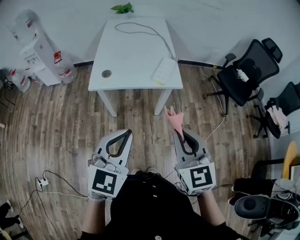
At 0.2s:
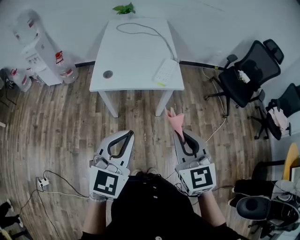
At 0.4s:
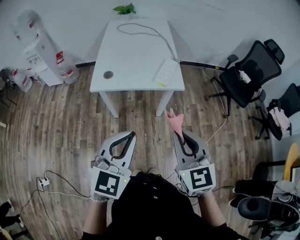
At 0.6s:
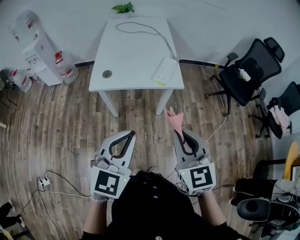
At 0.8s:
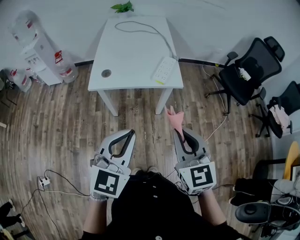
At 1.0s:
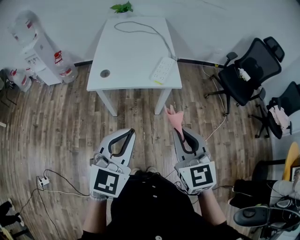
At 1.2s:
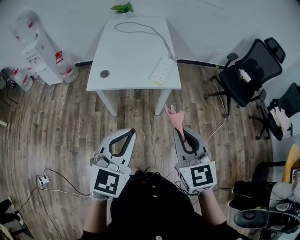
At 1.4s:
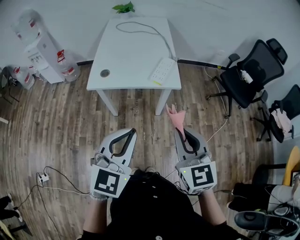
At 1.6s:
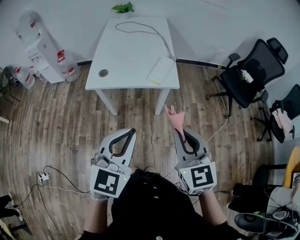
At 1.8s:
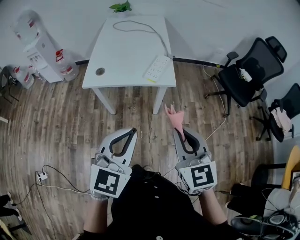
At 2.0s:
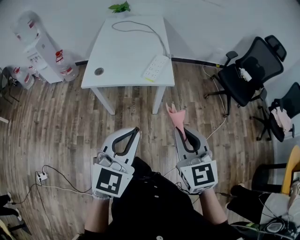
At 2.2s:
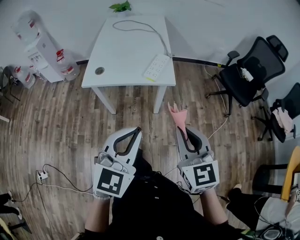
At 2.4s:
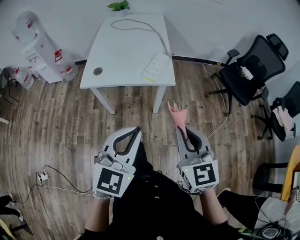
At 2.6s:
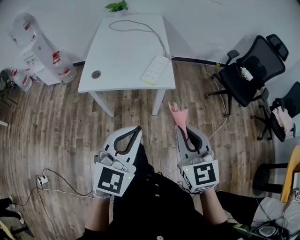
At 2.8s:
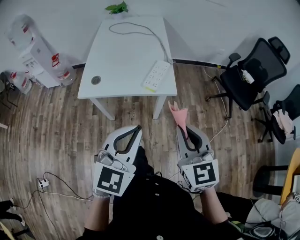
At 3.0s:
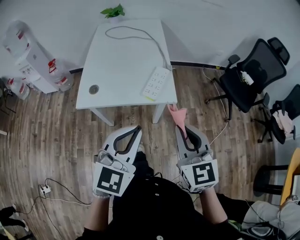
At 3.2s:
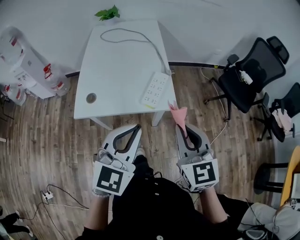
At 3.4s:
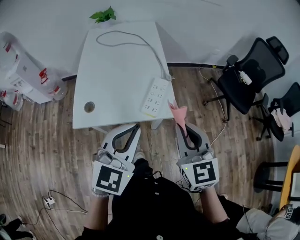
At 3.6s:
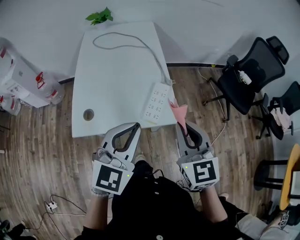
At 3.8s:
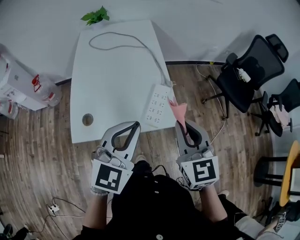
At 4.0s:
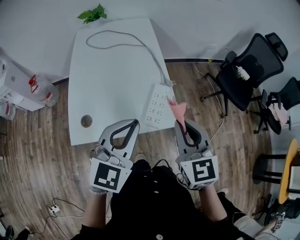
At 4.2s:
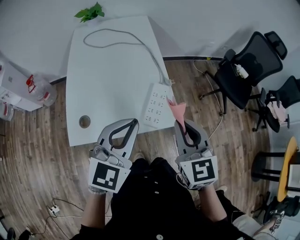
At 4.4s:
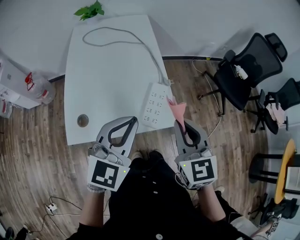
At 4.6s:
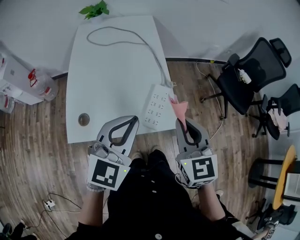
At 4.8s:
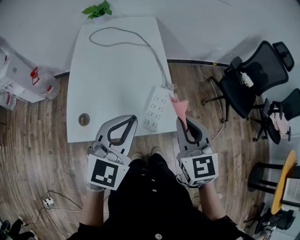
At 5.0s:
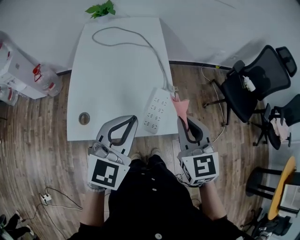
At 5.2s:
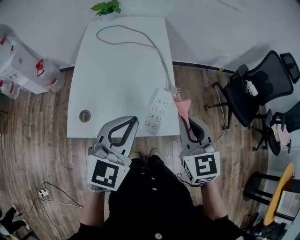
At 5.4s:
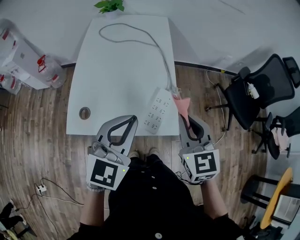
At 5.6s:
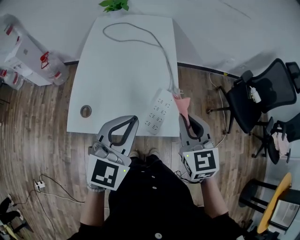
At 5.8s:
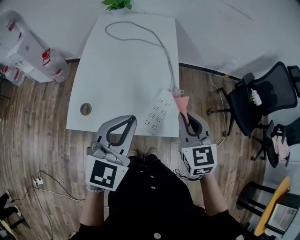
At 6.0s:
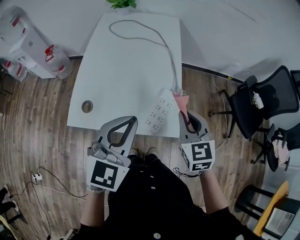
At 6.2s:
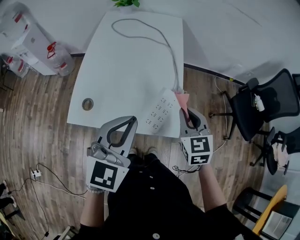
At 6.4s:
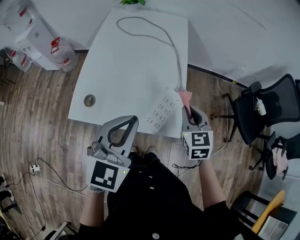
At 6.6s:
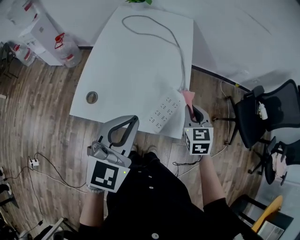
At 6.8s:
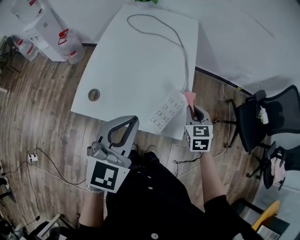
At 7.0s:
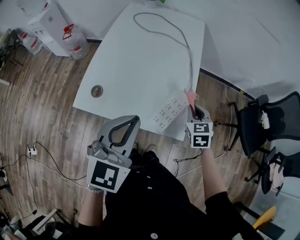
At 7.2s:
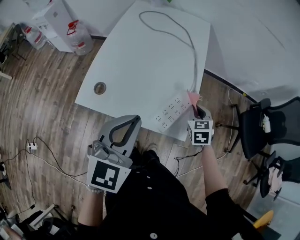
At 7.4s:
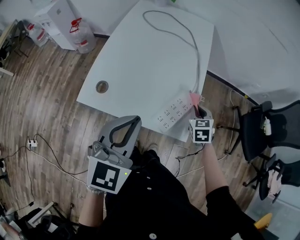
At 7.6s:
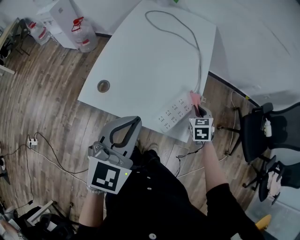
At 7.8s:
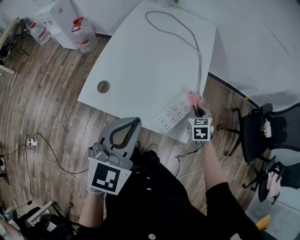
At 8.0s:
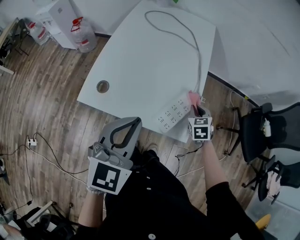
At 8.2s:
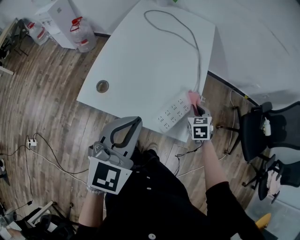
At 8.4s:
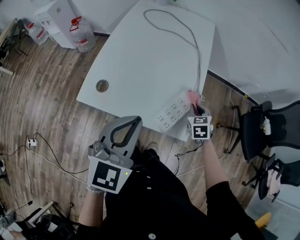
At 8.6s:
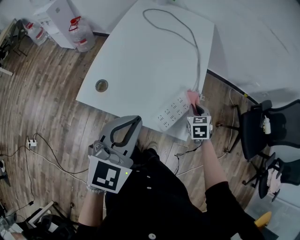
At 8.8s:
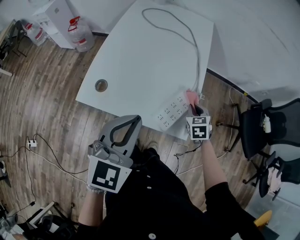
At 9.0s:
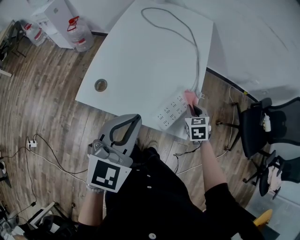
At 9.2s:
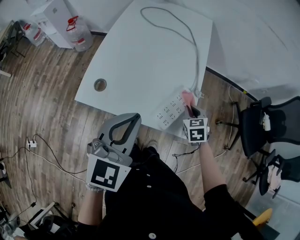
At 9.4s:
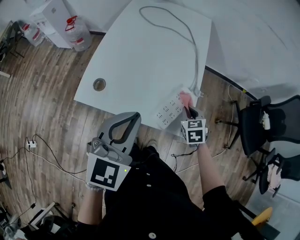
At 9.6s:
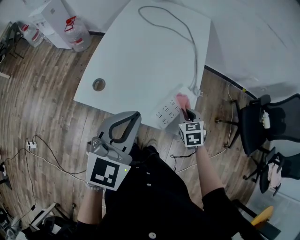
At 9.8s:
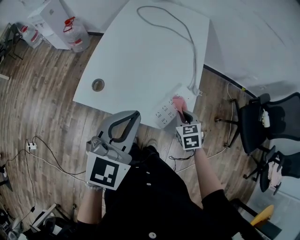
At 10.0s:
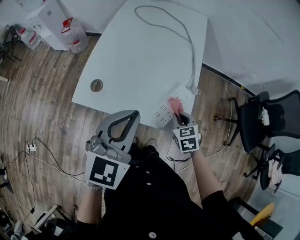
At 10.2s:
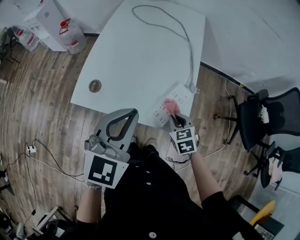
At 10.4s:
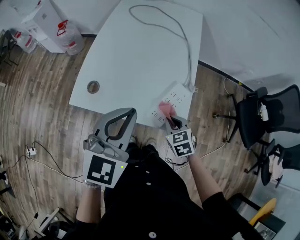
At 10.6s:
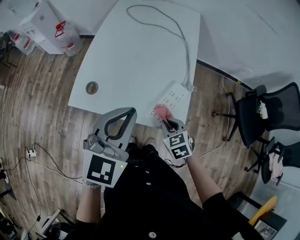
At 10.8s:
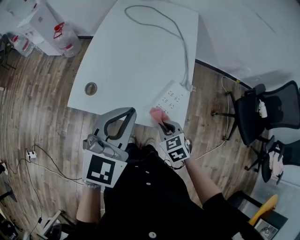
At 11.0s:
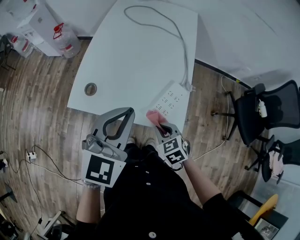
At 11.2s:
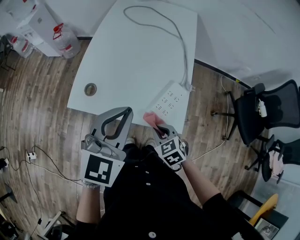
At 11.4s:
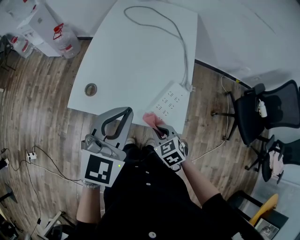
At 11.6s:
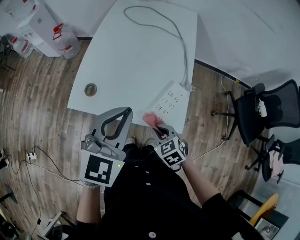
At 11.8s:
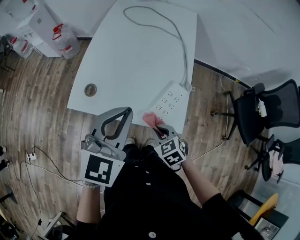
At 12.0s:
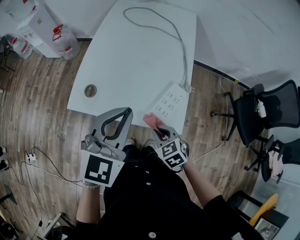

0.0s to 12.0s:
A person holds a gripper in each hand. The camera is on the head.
0.0s to 1.6s: Both grippers travel together to the right, about 5 cm.
1.6s to 3.0s: Both grippers travel together forward, roughly 15 cm.
3.0s to 4.4s: Both grippers travel together forward, about 20 cm.
4.4s to 6.0s: The right gripper travels forward and downward by some 10 cm.
6.0s to 7.6s: The right gripper goes about 20 cm downward and forward, and changes its angle by some 20 degrees.
7.6s to 9.0s: The grippers move only a little.
9.0s to 10.4s: The right gripper is displaced backward and to the left by approximately 10 cm.
10.4s to 12.0s: The right gripper heads to the left, covering roughly 5 cm.

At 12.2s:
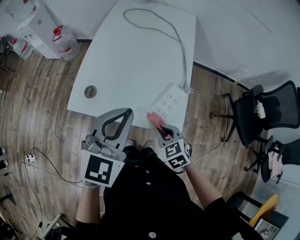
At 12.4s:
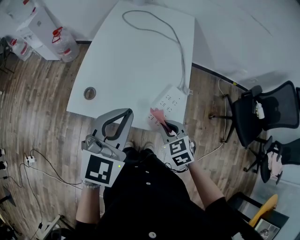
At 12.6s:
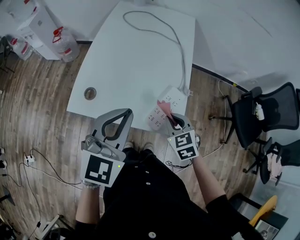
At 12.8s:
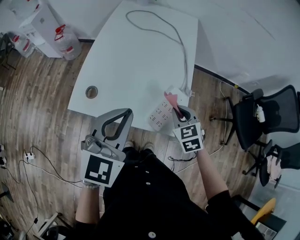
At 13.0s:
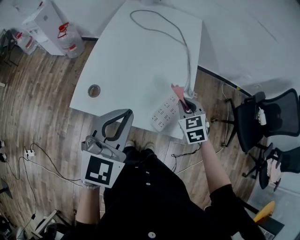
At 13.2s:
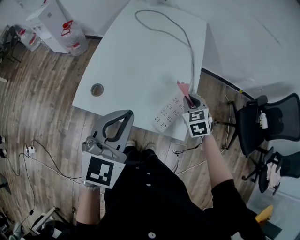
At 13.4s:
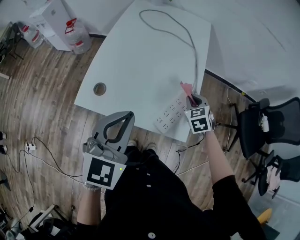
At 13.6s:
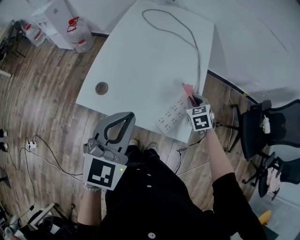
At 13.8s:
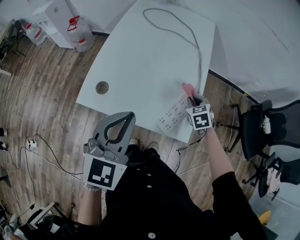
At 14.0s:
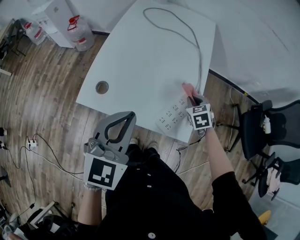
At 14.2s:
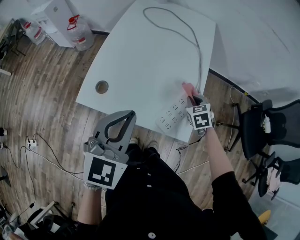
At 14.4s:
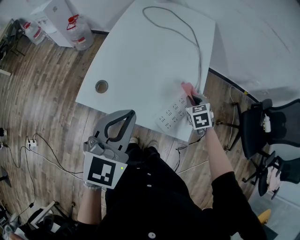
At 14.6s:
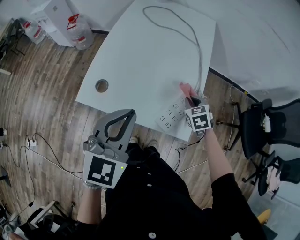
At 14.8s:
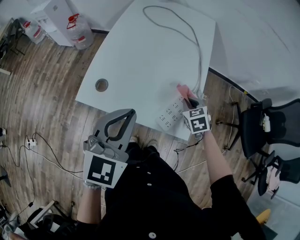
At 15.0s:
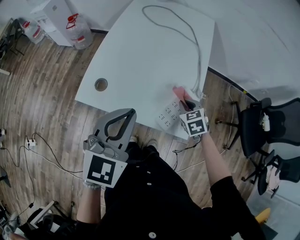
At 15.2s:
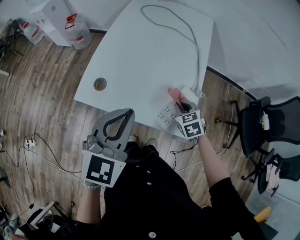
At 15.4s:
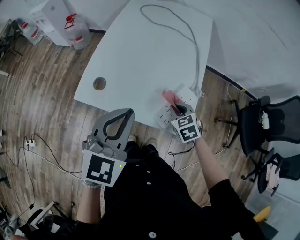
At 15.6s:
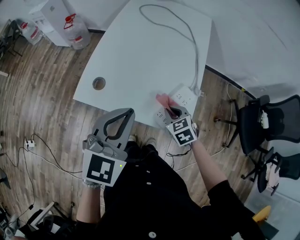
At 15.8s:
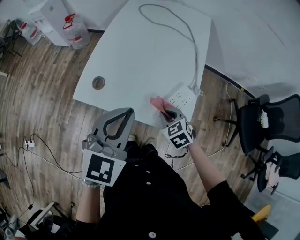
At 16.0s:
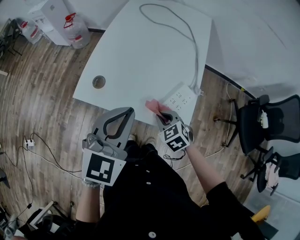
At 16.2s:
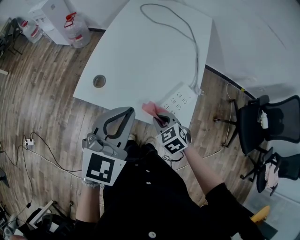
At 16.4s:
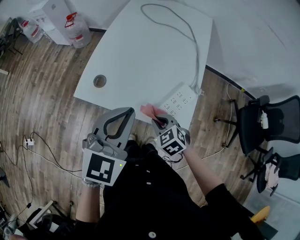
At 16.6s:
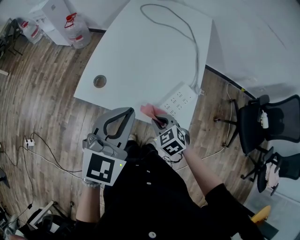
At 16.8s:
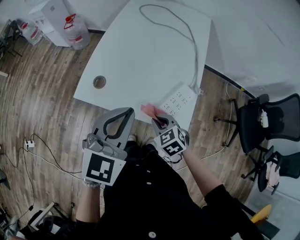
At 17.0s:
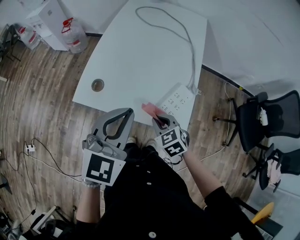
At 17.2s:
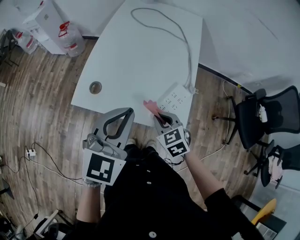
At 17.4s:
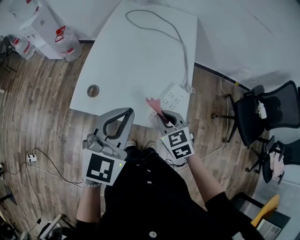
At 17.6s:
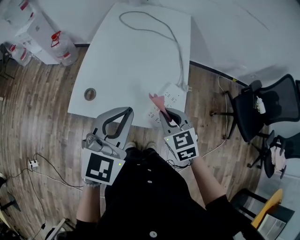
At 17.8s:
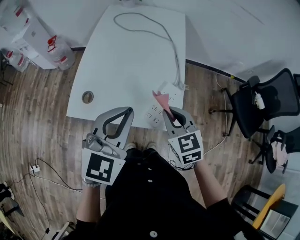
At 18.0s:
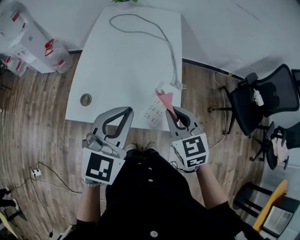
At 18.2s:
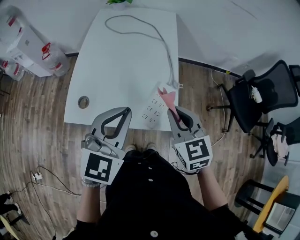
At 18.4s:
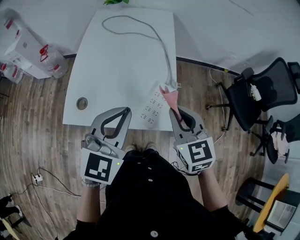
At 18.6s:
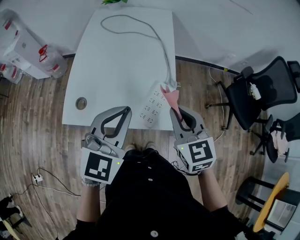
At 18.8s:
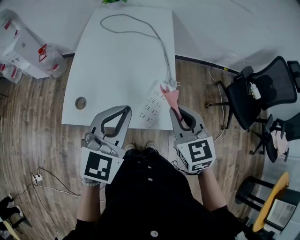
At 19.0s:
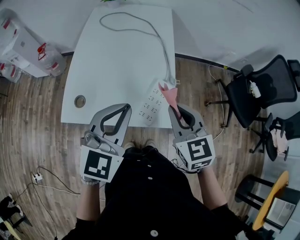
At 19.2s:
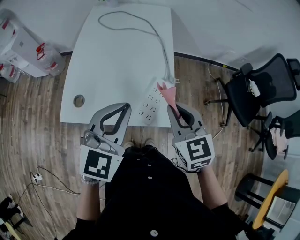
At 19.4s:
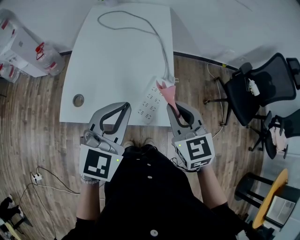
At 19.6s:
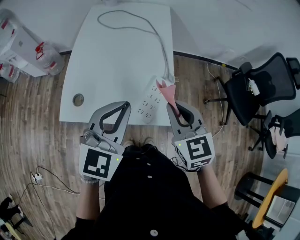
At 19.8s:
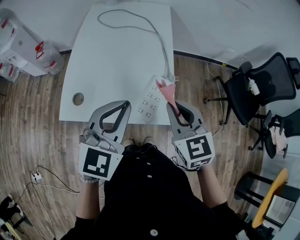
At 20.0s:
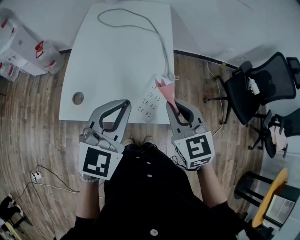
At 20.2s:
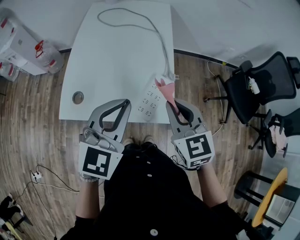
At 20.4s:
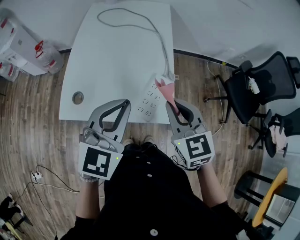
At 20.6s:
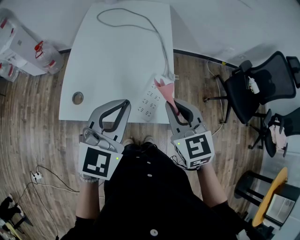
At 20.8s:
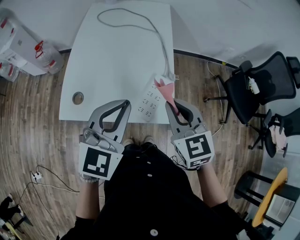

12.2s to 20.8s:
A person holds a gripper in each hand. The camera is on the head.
12.2s to 13.6s: The right gripper moves forward and to the right, roughly 20 cm.
13.6s to 15.0s: The right gripper shifts by roughly 5 cm.
15.0s to 16.6s: The right gripper goes approximately 15 cm to the left and backward.
16.6s to 18.0s: The left gripper is displaced to the right by approximately 5 cm, while the right gripper goes some 20 cm upward and to the right, and turns by approximately 40 degrees.
18.0s to 19.4s: There are only small adjustments of the grippers.
19.4s to 20.8s: Neither gripper changes place.

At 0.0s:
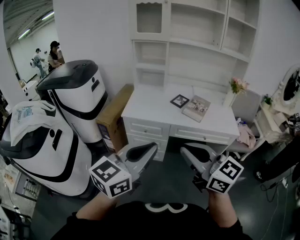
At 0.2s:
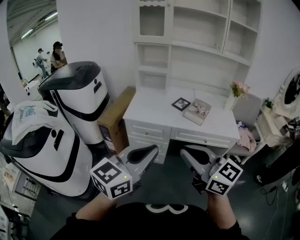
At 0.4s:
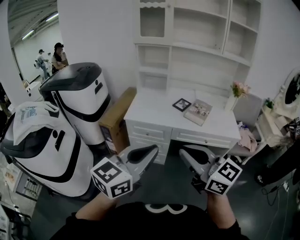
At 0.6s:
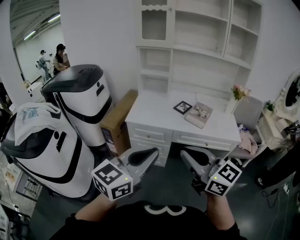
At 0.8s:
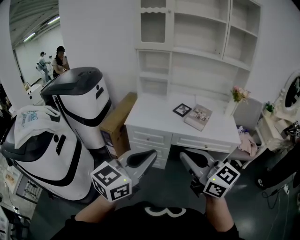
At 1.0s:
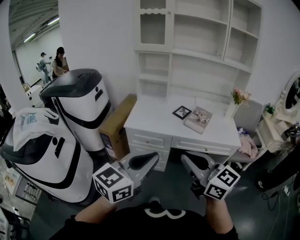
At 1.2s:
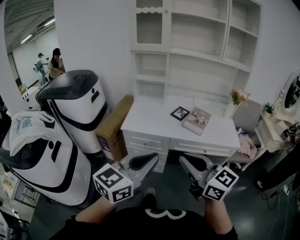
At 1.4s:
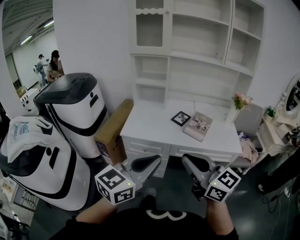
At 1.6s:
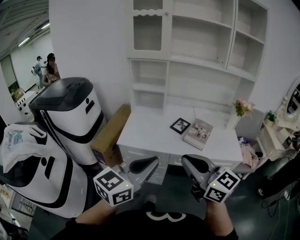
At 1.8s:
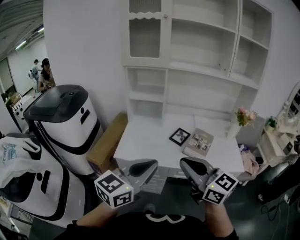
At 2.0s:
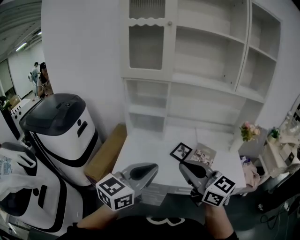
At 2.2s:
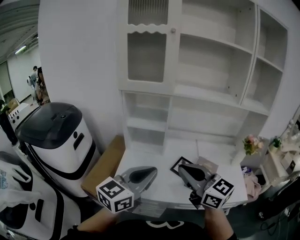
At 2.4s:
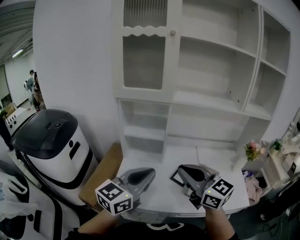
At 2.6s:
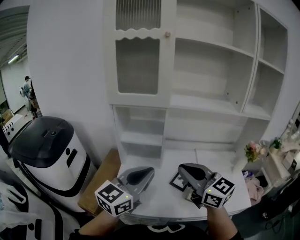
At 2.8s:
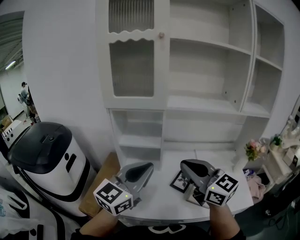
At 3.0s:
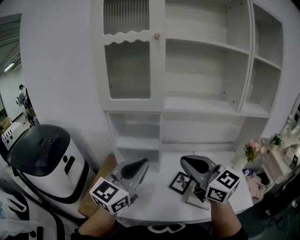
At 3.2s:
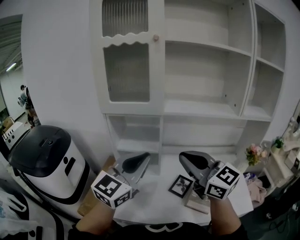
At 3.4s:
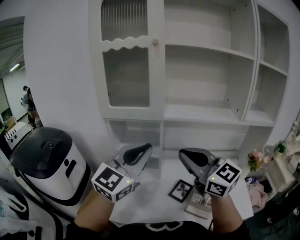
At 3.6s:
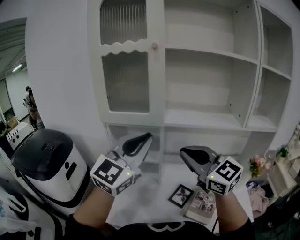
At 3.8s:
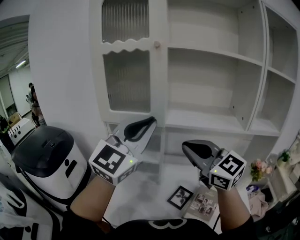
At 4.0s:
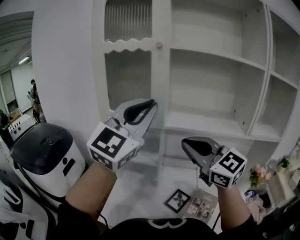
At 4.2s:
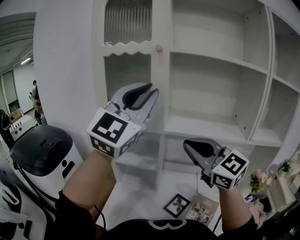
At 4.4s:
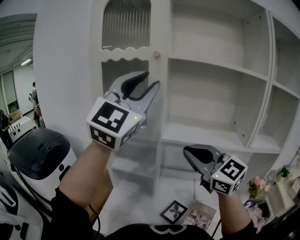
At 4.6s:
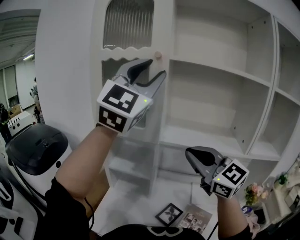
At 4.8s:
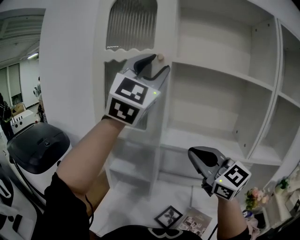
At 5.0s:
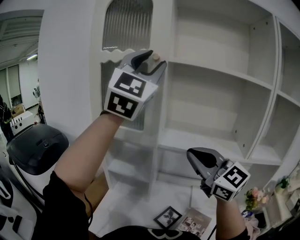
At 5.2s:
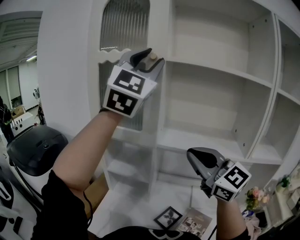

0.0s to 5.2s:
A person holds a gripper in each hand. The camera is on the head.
0.0s to 1.8s: The two grippers go some 25 cm forward.
1.8s to 3.4s: The left gripper travels forward and upward by about 40 cm, and rotates roughly 30 degrees, while the right gripper heads forward, covering about 35 cm.
3.4s to 5.2s: The right gripper is displaced forward, to the right and upward by approximately 15 cm. The left gripper goes roughly 35 cm upward and forward, swivels some 40 degrees, and opens its fingers.
